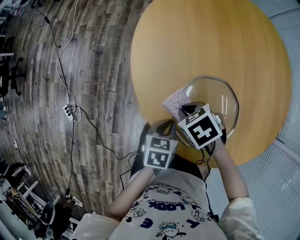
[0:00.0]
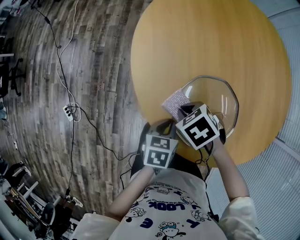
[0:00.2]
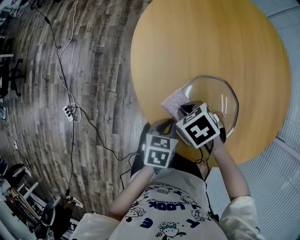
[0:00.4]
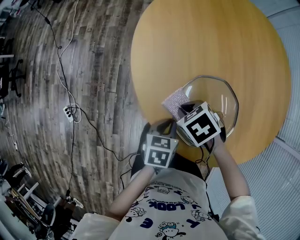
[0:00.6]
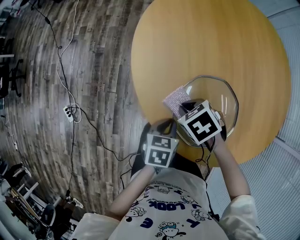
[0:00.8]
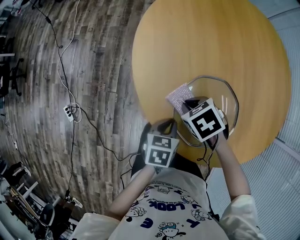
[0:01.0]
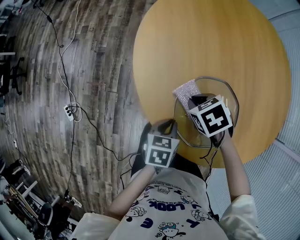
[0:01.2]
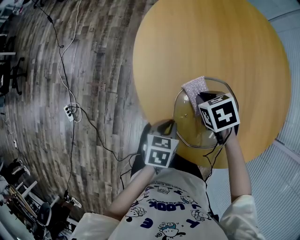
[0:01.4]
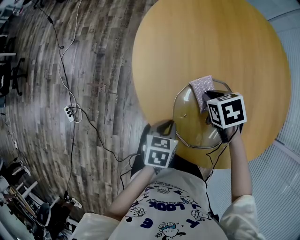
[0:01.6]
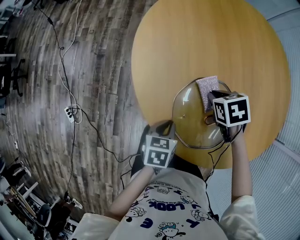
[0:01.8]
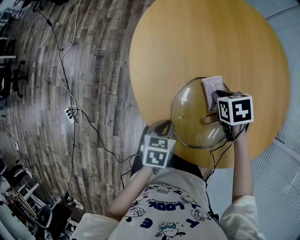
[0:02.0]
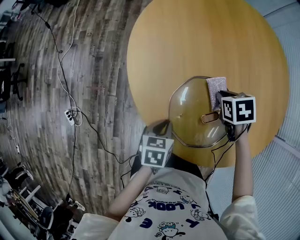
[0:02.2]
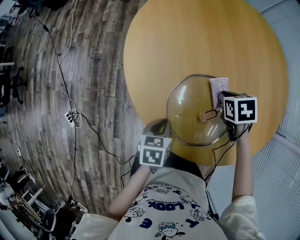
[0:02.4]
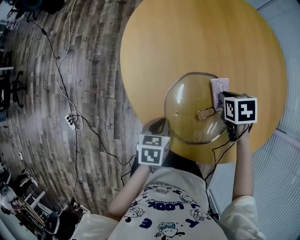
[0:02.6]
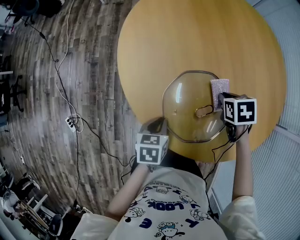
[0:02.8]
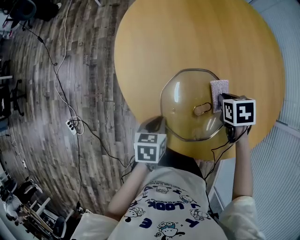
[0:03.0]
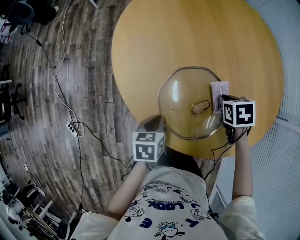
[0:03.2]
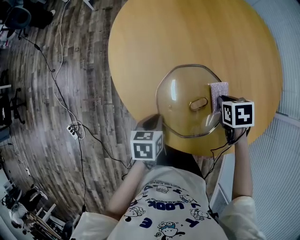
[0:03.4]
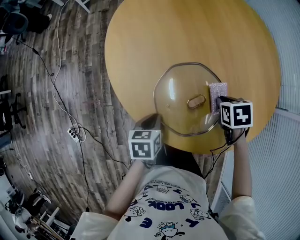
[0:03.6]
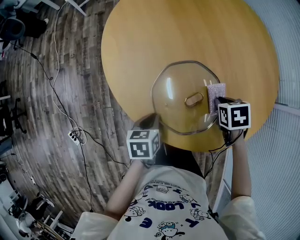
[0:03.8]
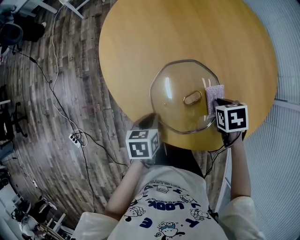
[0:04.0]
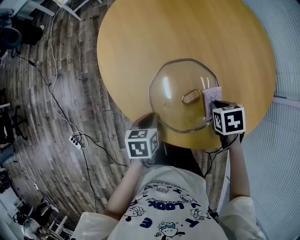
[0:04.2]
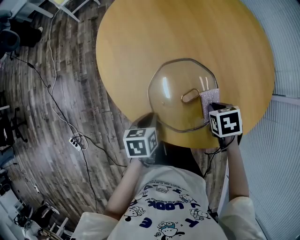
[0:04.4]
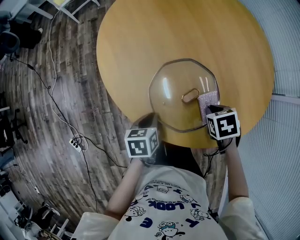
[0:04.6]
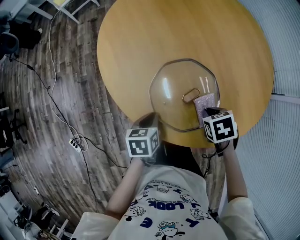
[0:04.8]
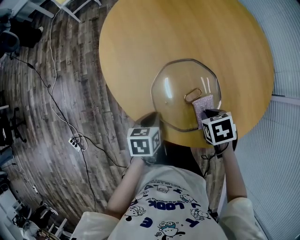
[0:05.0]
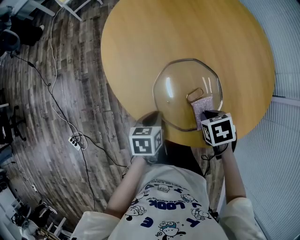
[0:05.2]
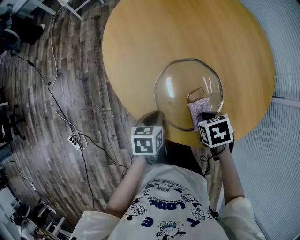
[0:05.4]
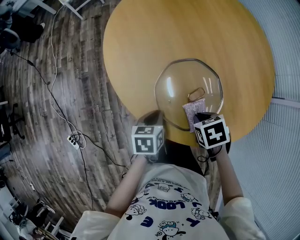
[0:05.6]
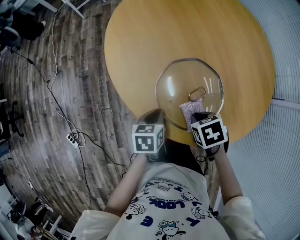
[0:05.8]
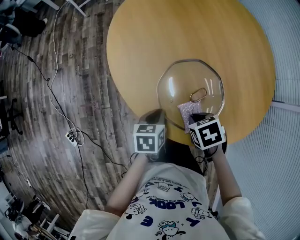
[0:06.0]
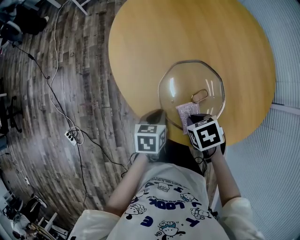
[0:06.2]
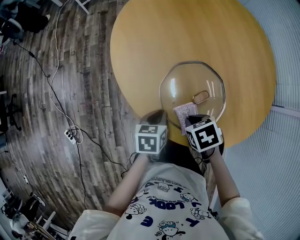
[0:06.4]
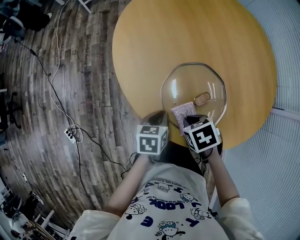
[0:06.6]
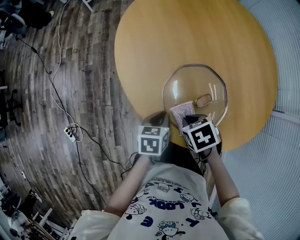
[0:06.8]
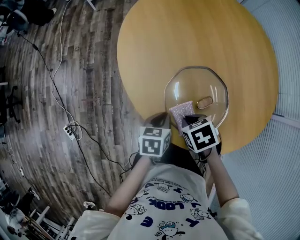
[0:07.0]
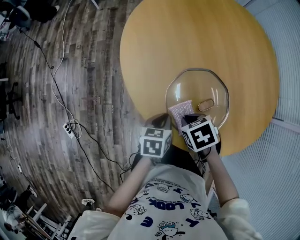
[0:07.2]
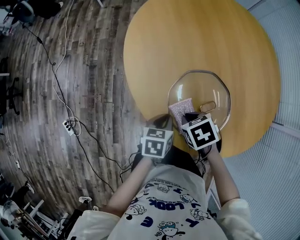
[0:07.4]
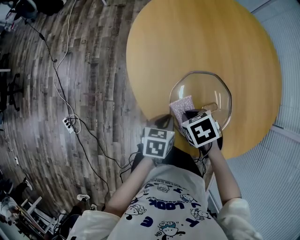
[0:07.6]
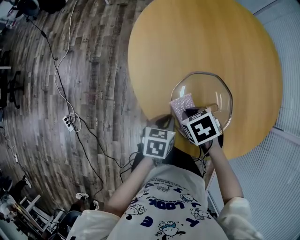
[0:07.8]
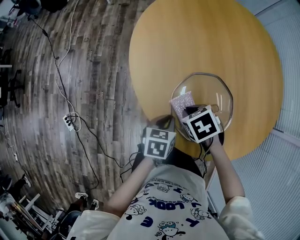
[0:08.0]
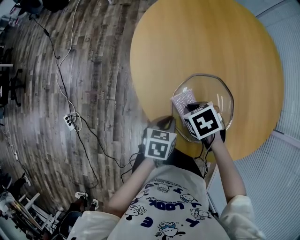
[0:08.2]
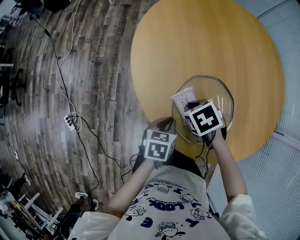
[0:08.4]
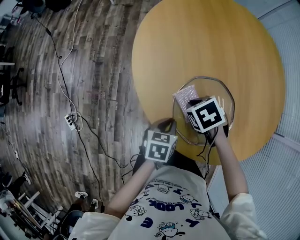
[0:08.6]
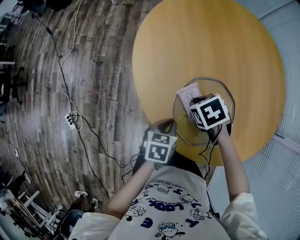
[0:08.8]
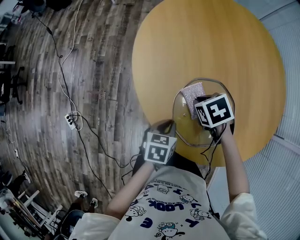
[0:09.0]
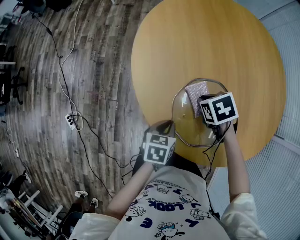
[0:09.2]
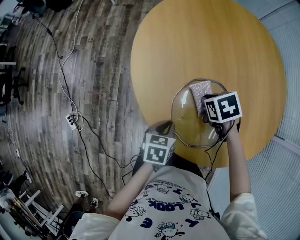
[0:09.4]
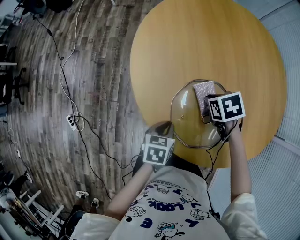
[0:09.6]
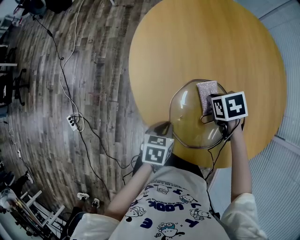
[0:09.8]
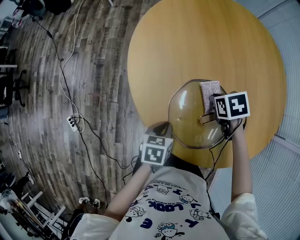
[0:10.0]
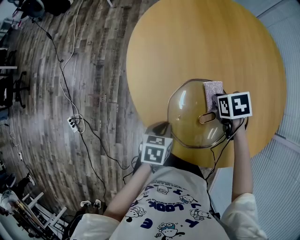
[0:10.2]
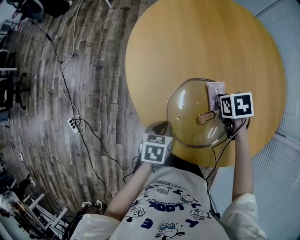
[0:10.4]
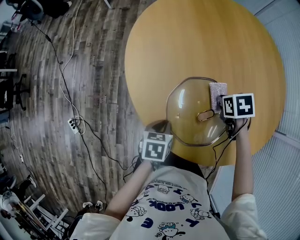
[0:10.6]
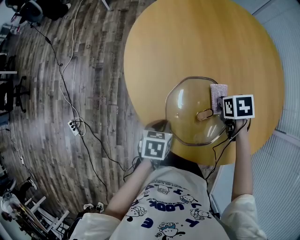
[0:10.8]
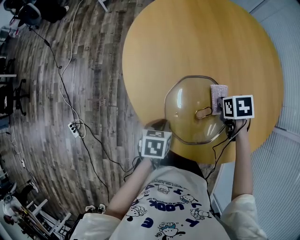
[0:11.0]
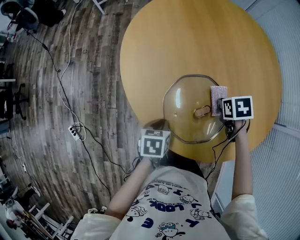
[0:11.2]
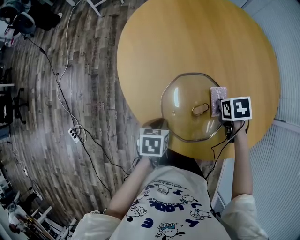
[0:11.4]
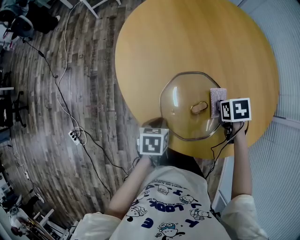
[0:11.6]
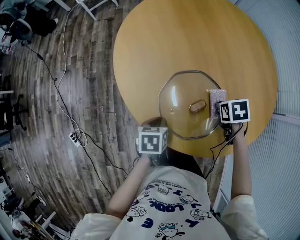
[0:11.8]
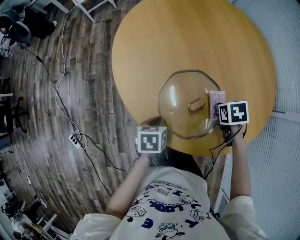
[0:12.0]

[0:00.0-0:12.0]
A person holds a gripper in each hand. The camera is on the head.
0:00.0 to 0:01.6: The right gripper ends up about 10 cm from where it was.
0:01.6 to 0:03.0: The right gripper heads to the right, covering approximately 15 cm, and rotates roughly 20 degrees.
0:03.0 to 0:04.4: The right gripper moves roughly 10 cm.
0:04.4 to 0:06.0: The right gripper changes place by some 10 cm.
0:06.0 to 0:07.6: The right gripper moves roughly 10 cm.
0:07.6 to 0:09.0: The right gripper moves roughly 10 cm.
0:09.0 to 0:10.4: The right gripper moves approximately 10 cm.
0:10.4 to 0:12.0: The right gripper moves about 10 cm.

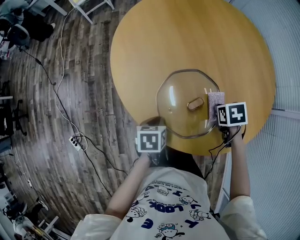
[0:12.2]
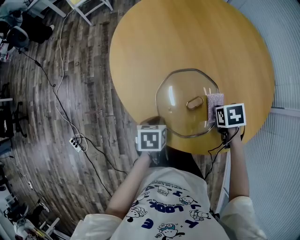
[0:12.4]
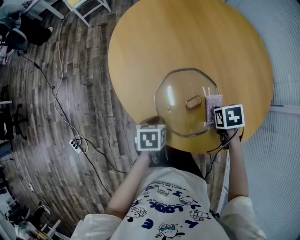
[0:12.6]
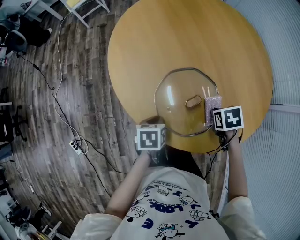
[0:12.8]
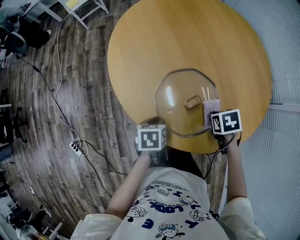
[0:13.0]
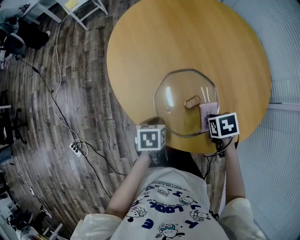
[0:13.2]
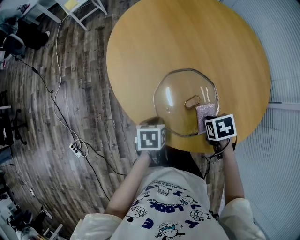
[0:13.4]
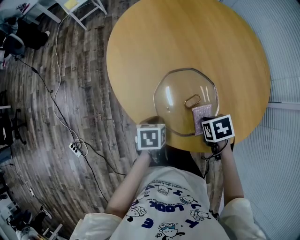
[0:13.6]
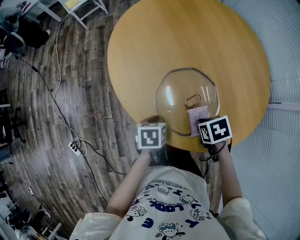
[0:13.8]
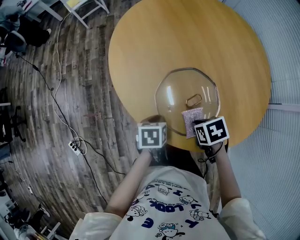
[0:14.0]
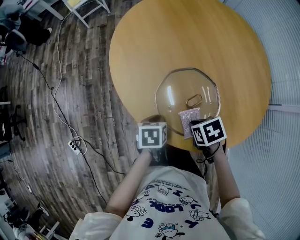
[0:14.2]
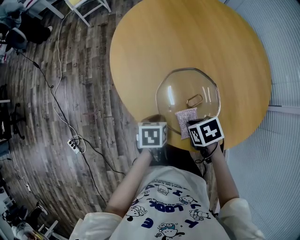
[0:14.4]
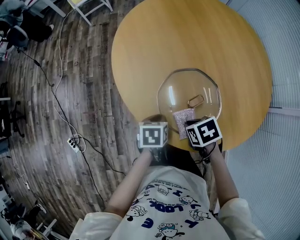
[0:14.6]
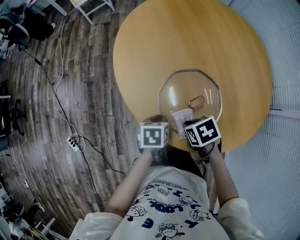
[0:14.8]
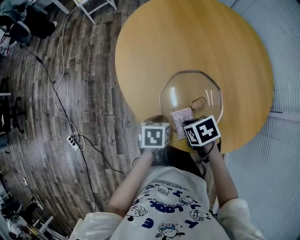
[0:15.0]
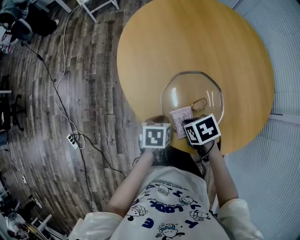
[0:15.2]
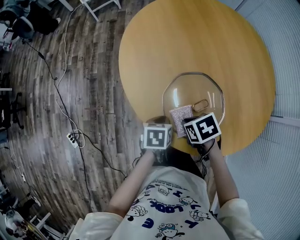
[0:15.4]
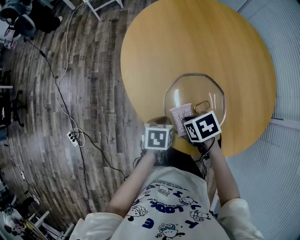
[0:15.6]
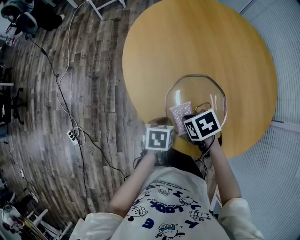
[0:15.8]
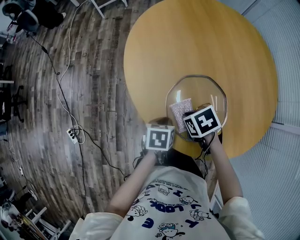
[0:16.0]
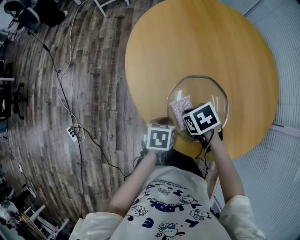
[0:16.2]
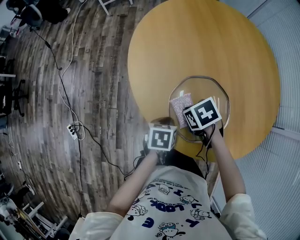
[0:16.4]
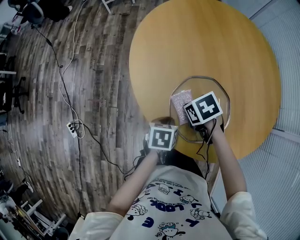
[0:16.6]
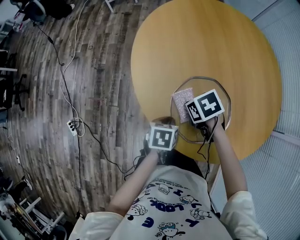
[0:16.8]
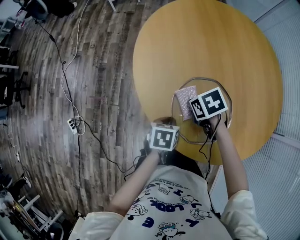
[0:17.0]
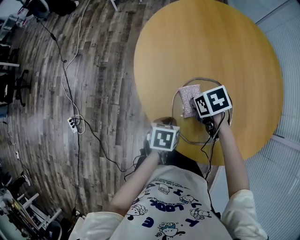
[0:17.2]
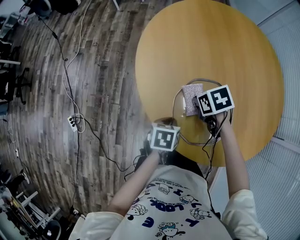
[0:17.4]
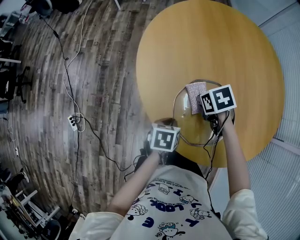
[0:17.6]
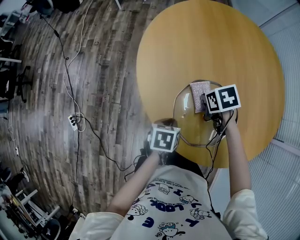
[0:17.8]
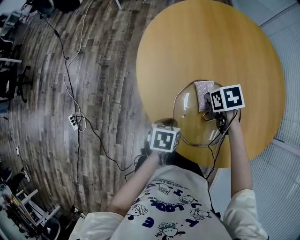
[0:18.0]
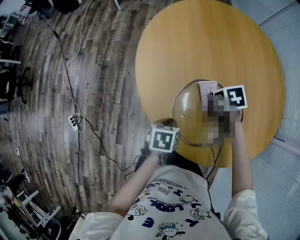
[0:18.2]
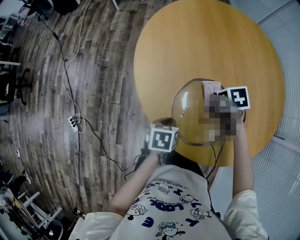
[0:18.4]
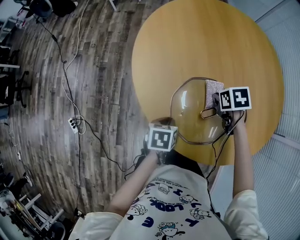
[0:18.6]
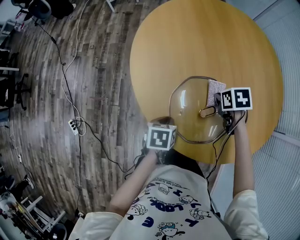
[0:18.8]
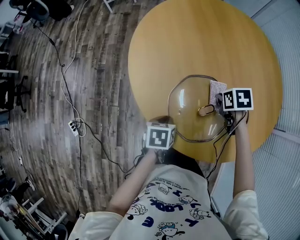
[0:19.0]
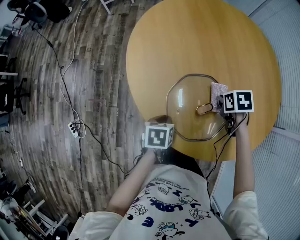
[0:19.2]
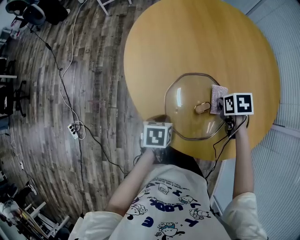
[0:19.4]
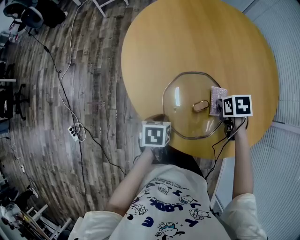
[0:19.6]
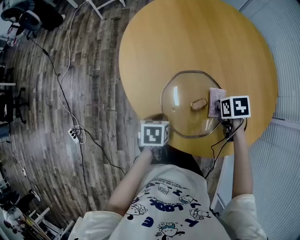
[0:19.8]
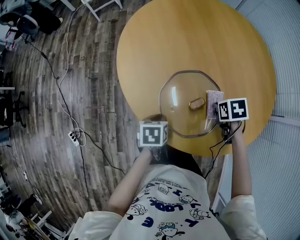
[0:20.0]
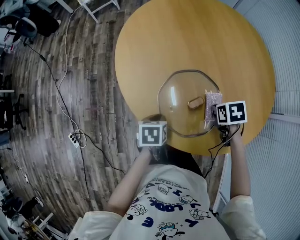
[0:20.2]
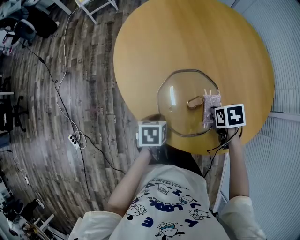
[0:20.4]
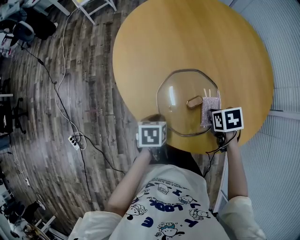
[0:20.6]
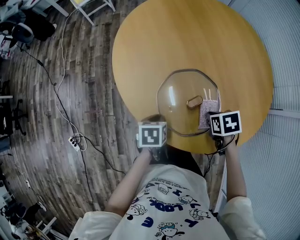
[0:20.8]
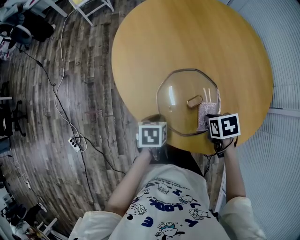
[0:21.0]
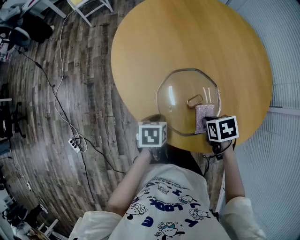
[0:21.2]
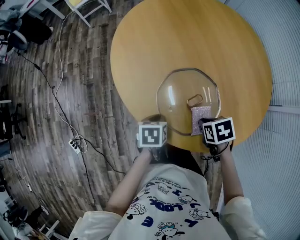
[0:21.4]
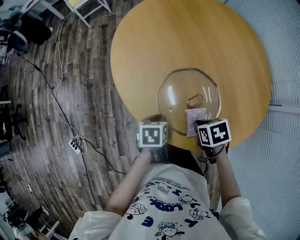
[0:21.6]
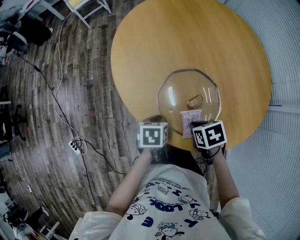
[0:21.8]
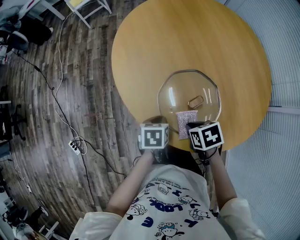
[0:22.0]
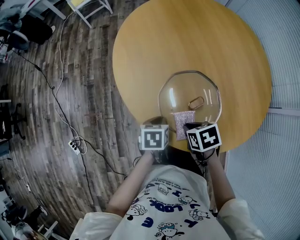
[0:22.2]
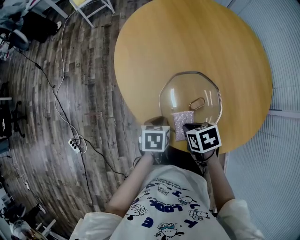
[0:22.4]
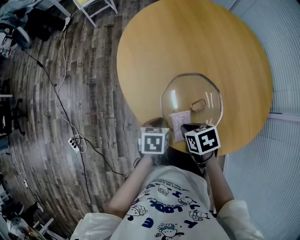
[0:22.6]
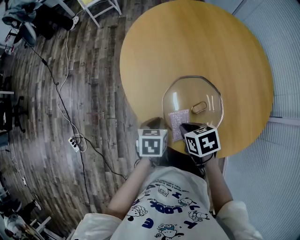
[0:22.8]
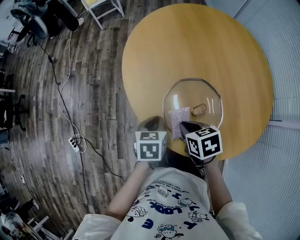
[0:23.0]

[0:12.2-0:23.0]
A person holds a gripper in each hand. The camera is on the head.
0:12.2 to 0:13.8: The right gripper ends up roughly 10 cm from where it was.
0:13.8 to 0:15.2: The right gripper shifts by some 10 cm.
0:15.2 to 0:16.8: The right gripper moves forward, some 10 cm.
0:16.8 to 0:18.4: The right gripper ends up some 15 cm from where it was.
0:18.4 to 0:20.0: The right gripper ends up roughly 10 cm from where it was.
0:20.0 to 0:21.4: The right gripper moves approximately 10 cm.
0:21.4 to 0:23.0: The left gripper shifts roughly 5 cm upward. Meanwhile the right gripper changes place by roughly 15 cm.

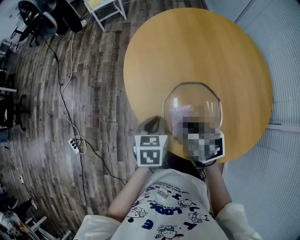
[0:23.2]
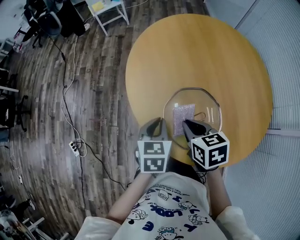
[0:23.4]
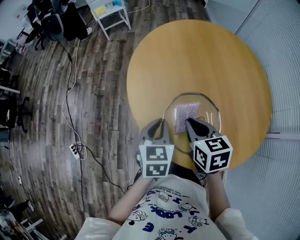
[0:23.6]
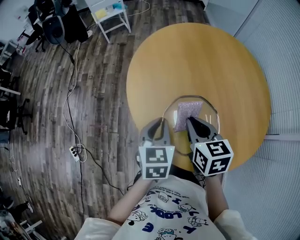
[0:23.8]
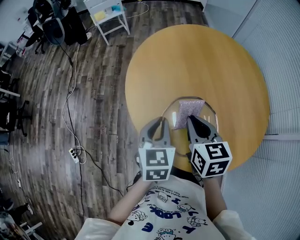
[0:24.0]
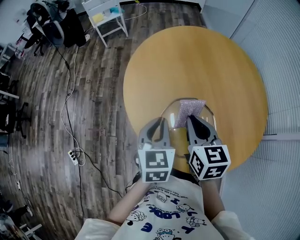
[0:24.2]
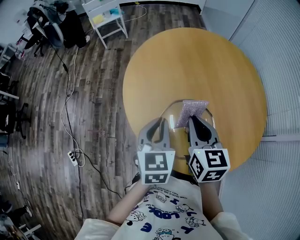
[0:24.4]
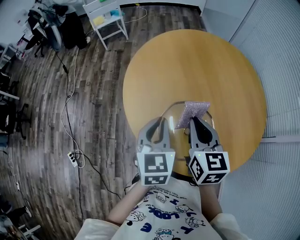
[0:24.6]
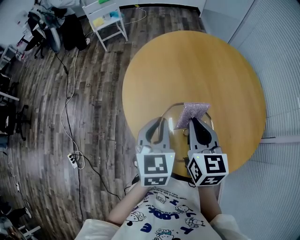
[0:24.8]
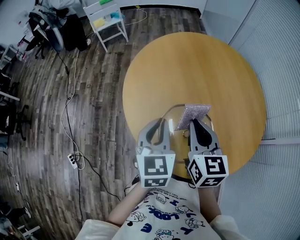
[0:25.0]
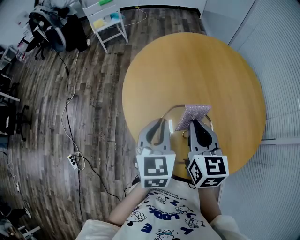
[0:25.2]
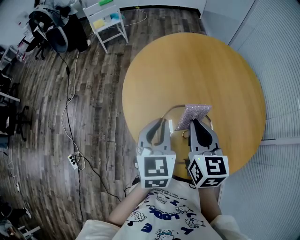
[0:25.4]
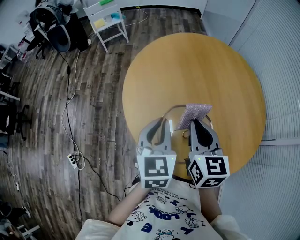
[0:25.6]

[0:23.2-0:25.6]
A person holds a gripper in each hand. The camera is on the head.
0:23.2 to 0:24.4: The left gripper goes roughly 15 cm upward, and turns by approximately 20 degrees. The right gripper moves upward and forward, roughly 15 cm, and rotates approximately 40 degrees.
0:24.4 to 0:25.6: The grippers make only small movements.
